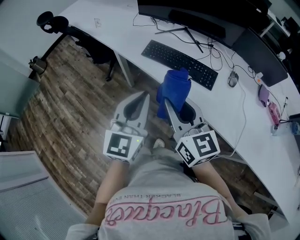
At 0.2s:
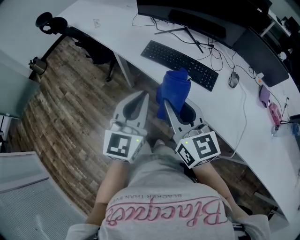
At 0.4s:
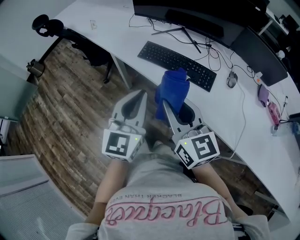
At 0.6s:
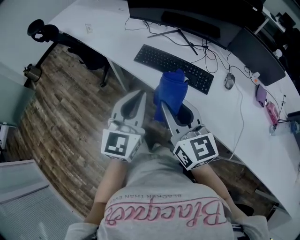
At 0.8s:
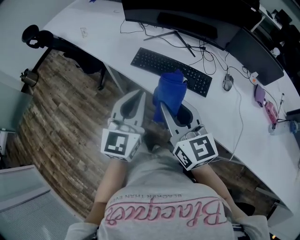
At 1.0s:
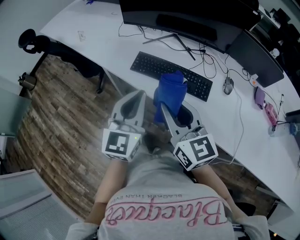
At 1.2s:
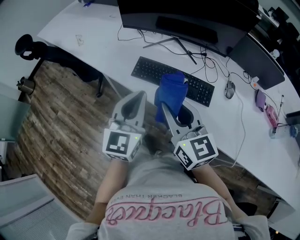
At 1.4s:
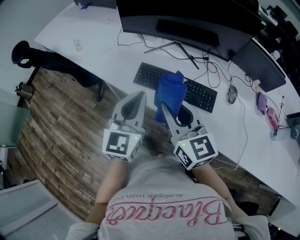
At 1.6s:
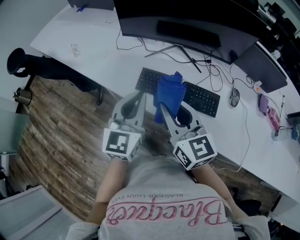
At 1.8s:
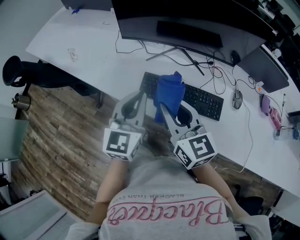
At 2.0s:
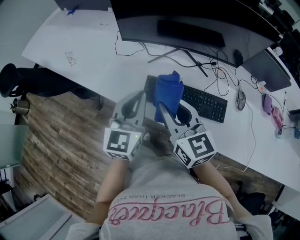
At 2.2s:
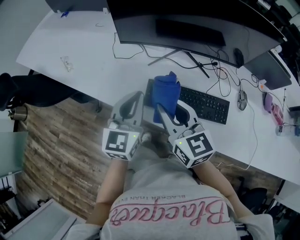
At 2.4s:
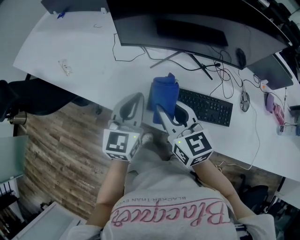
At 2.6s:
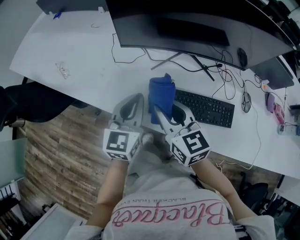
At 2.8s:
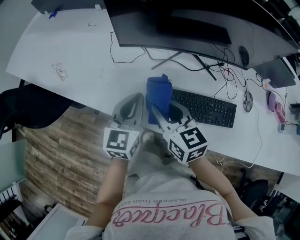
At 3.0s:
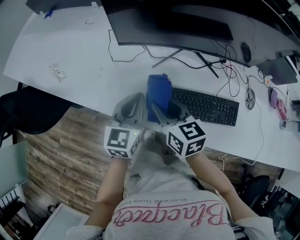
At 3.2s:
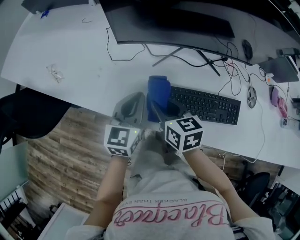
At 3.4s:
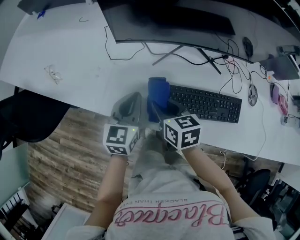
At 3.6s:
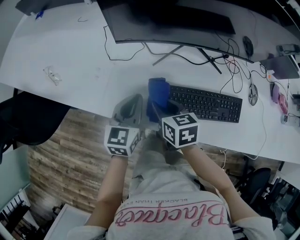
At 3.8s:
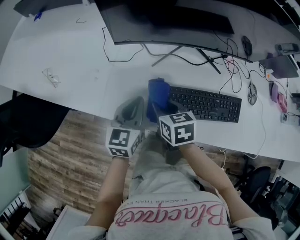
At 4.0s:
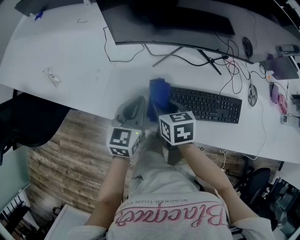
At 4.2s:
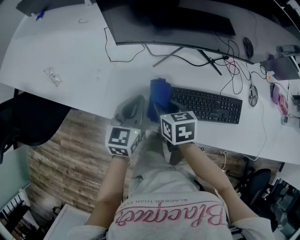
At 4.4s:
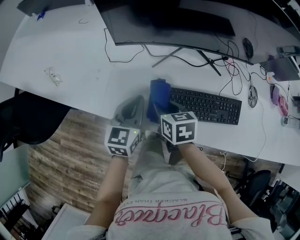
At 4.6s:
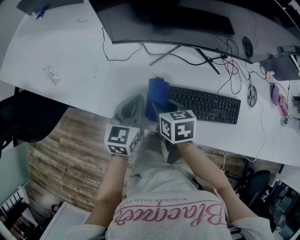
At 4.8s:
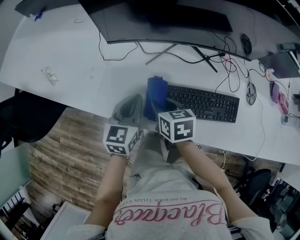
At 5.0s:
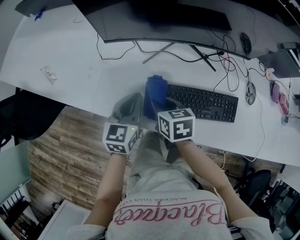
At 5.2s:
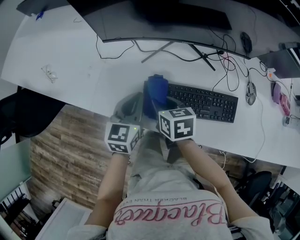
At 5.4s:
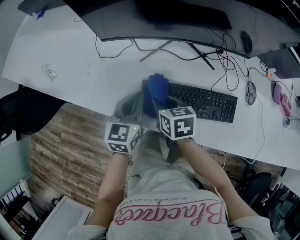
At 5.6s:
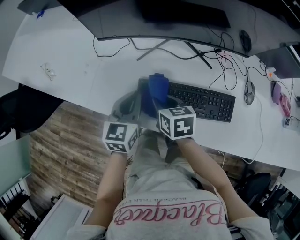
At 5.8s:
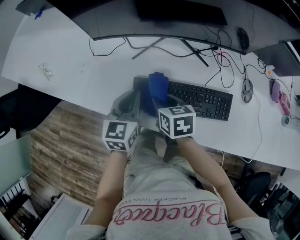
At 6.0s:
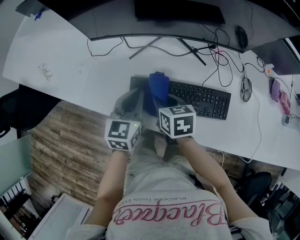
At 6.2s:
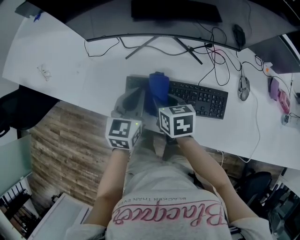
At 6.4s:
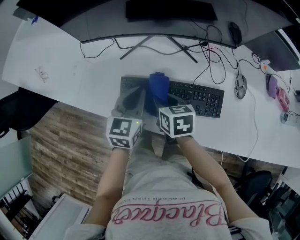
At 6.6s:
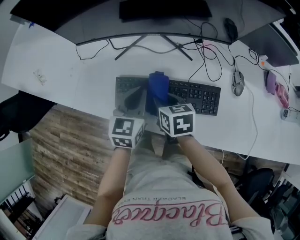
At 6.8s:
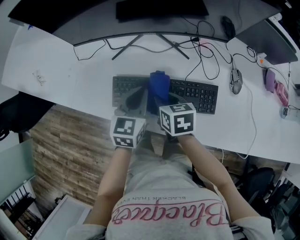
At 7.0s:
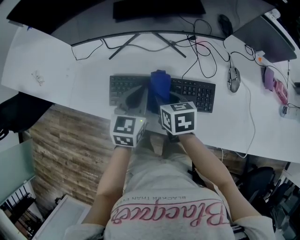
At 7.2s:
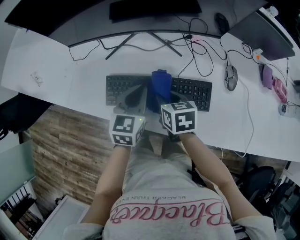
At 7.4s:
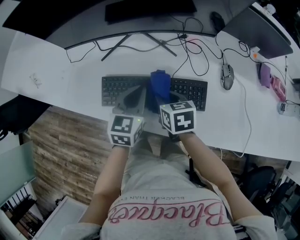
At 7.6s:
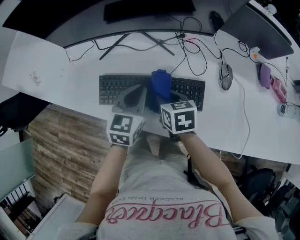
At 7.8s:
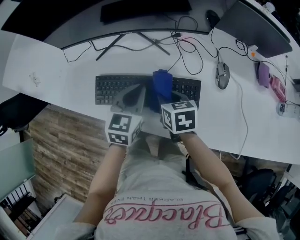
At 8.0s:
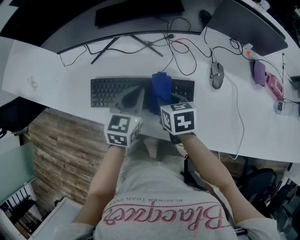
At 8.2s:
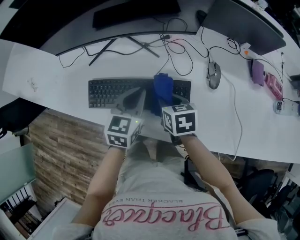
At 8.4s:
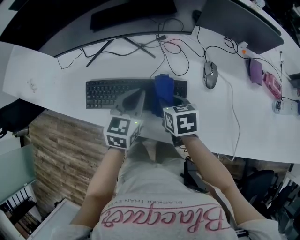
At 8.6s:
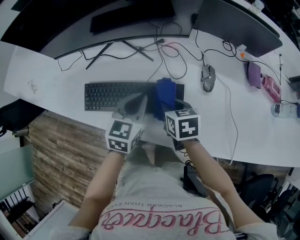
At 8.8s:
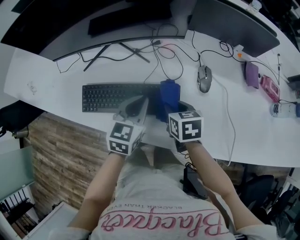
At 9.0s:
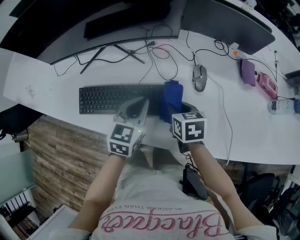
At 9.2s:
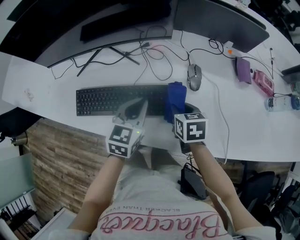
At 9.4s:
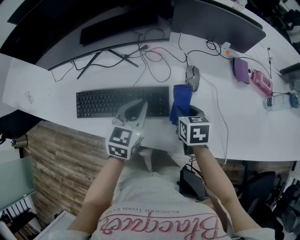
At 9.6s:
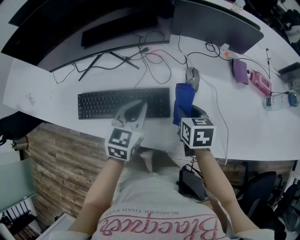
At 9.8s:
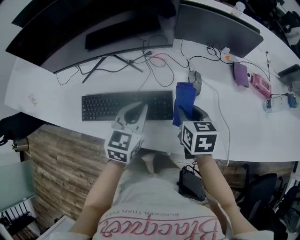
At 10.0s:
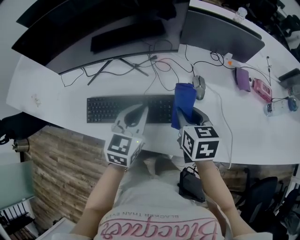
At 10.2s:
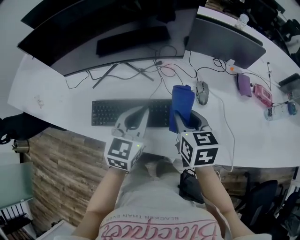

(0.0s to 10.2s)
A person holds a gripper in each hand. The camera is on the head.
0.0s - 1.4s: The two grippers go some 15 cm forward.
1.4s - 3.0s: The grippers both shift forward, downward and to the left by approximately 30 cm. The left gripper changes its angle by roughly 20 degrees. Meanwhile the right gripper changes its angle by some 30 degrees.
3.0s - 4.4s: The right gripper shifts about 10 cm downward, and swivels about 20 degrees.
4.4s - 5.8s: The two grippers go about 10 cm to the right.
5.8s - 7.2s: The grippers both shift to the right by about 15 cm.
7.2s - 8.8s: The two grippers go some 15 cm to the right.
8.8s - 10.2s: The left gripper travels upward by about 10 cm; the right gripper goes roughly 15 cm upward.

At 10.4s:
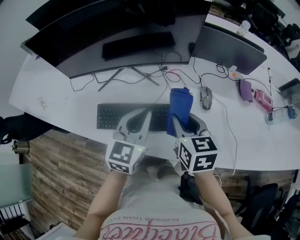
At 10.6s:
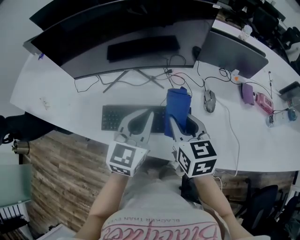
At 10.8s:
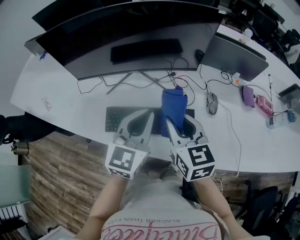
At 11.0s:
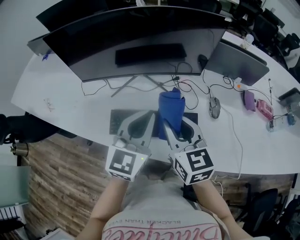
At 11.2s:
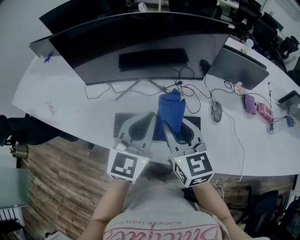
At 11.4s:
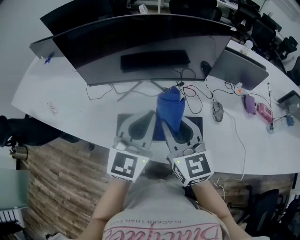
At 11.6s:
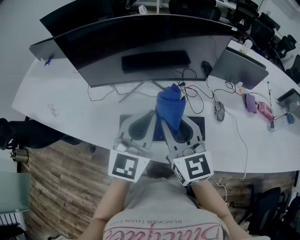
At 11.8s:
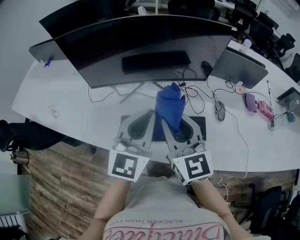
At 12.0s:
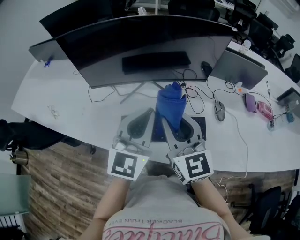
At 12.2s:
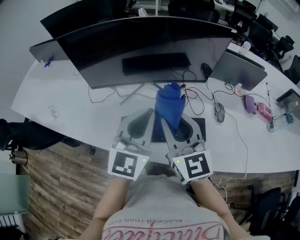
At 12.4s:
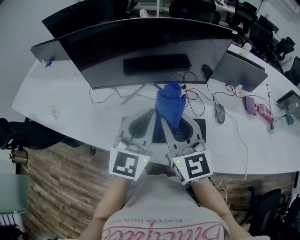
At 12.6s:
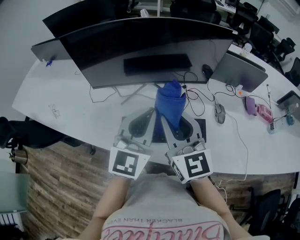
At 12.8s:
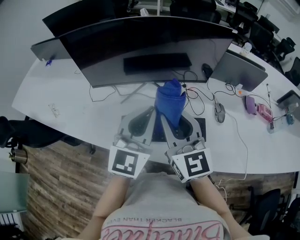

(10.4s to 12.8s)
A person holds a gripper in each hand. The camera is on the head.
10.4s - 11.6s: The grippers both shift to the left and upward by roughly 15 cm. The right gripper changes its angle by some 30 degrees.
11.6s - 12.8s: There are only small adjustments of the grippers.

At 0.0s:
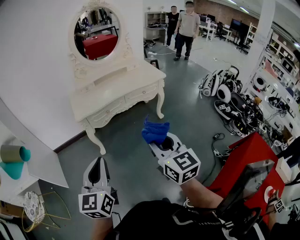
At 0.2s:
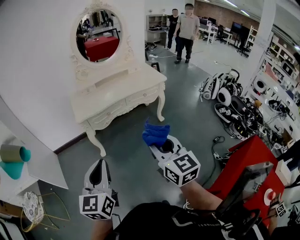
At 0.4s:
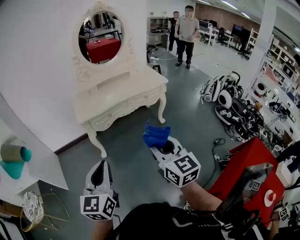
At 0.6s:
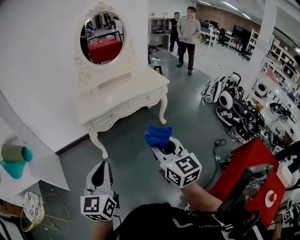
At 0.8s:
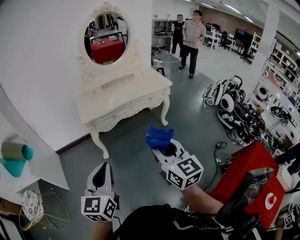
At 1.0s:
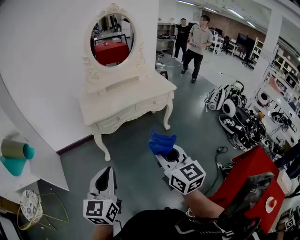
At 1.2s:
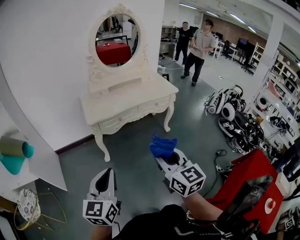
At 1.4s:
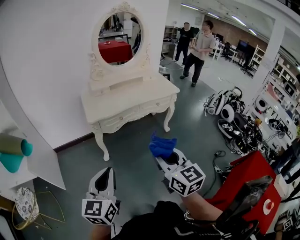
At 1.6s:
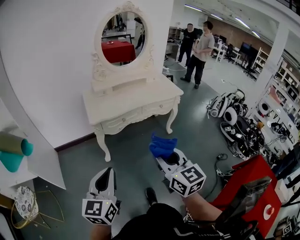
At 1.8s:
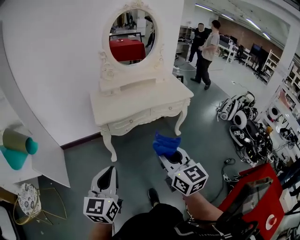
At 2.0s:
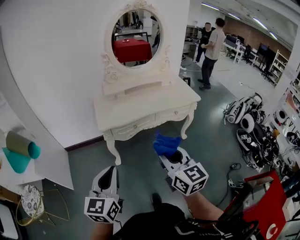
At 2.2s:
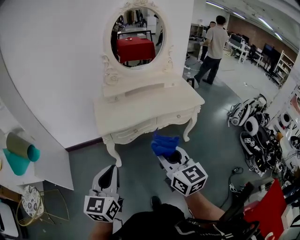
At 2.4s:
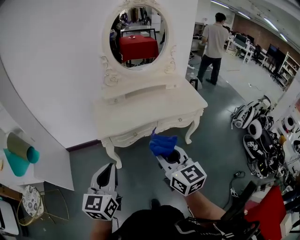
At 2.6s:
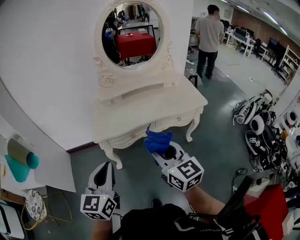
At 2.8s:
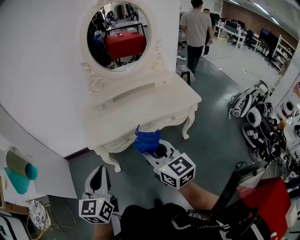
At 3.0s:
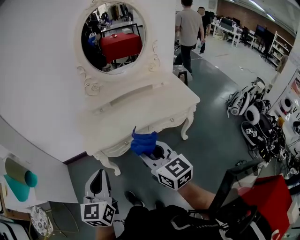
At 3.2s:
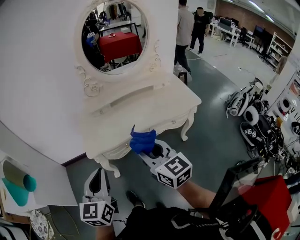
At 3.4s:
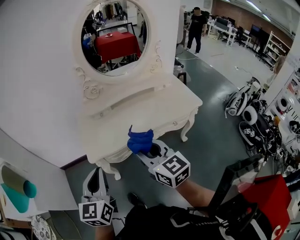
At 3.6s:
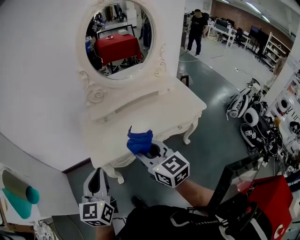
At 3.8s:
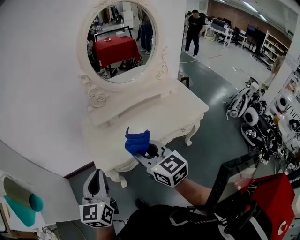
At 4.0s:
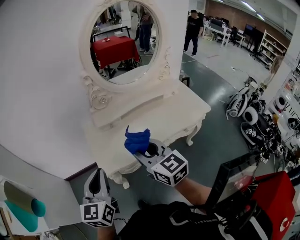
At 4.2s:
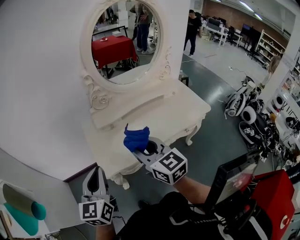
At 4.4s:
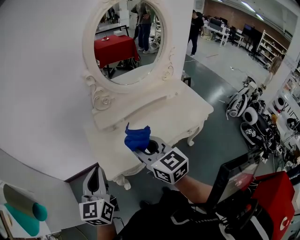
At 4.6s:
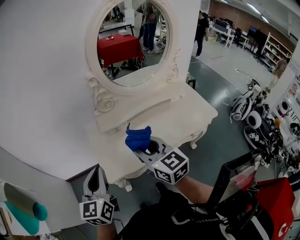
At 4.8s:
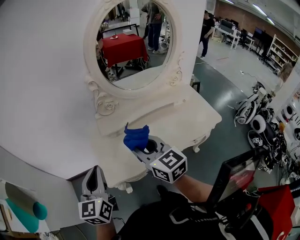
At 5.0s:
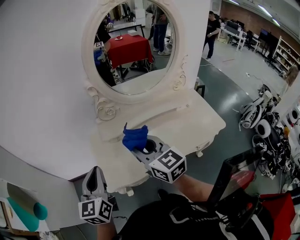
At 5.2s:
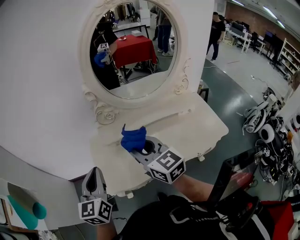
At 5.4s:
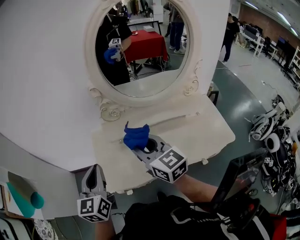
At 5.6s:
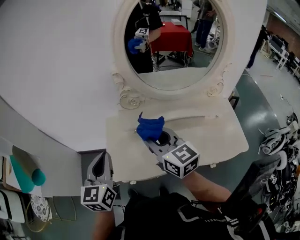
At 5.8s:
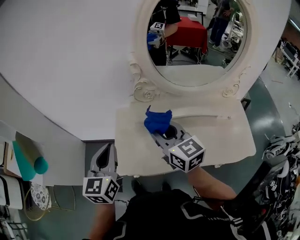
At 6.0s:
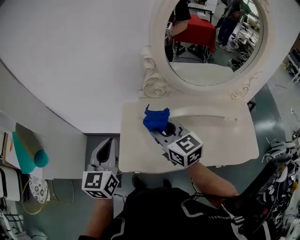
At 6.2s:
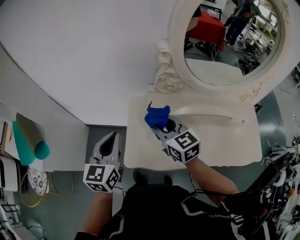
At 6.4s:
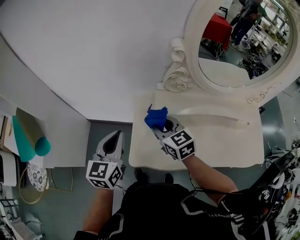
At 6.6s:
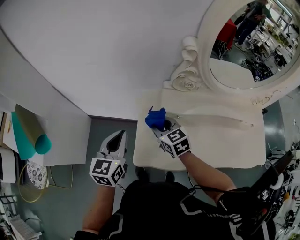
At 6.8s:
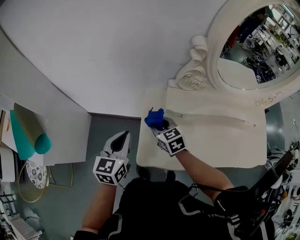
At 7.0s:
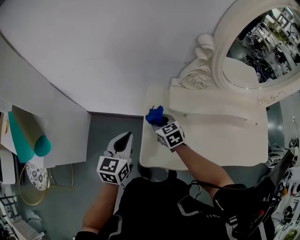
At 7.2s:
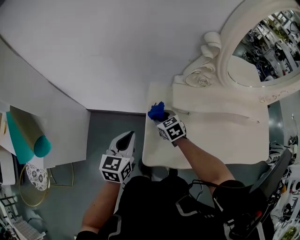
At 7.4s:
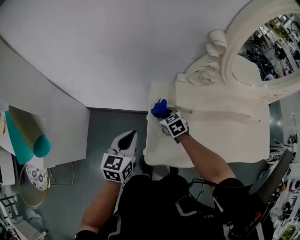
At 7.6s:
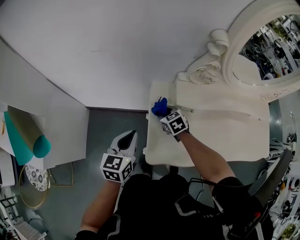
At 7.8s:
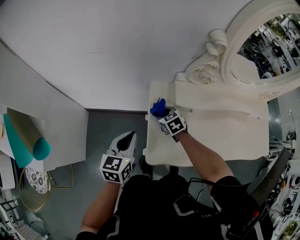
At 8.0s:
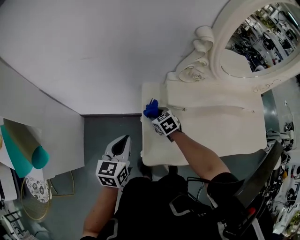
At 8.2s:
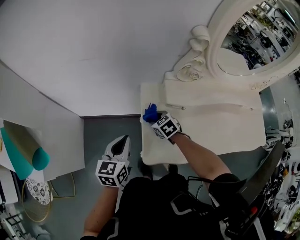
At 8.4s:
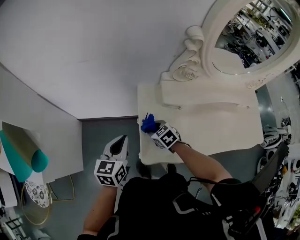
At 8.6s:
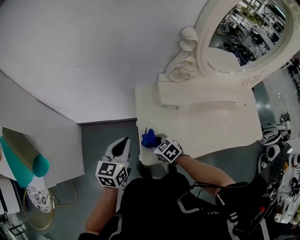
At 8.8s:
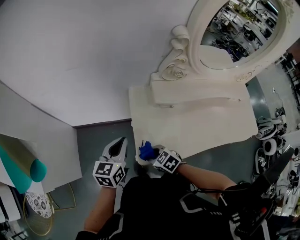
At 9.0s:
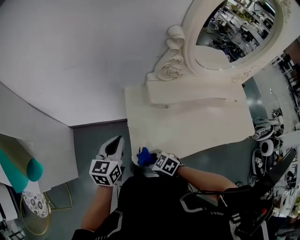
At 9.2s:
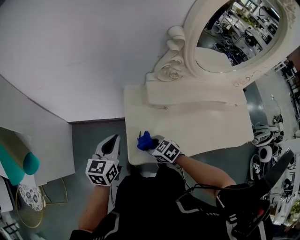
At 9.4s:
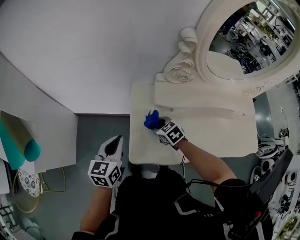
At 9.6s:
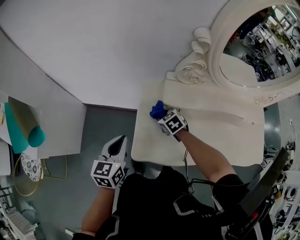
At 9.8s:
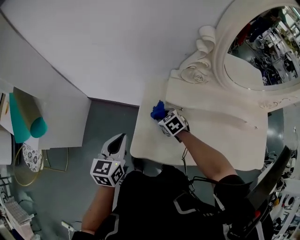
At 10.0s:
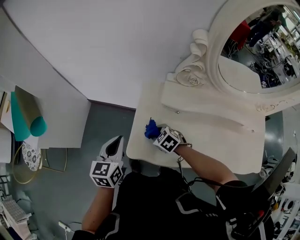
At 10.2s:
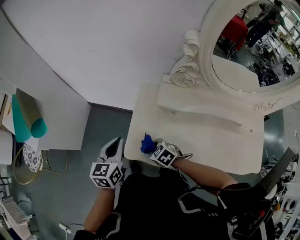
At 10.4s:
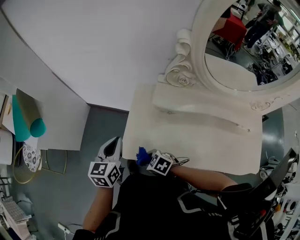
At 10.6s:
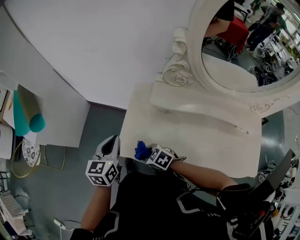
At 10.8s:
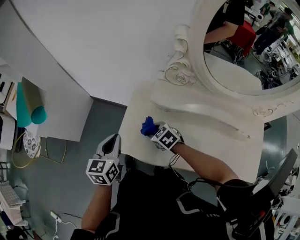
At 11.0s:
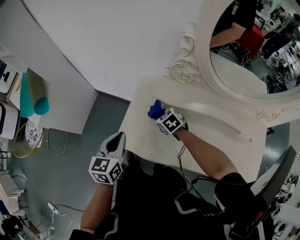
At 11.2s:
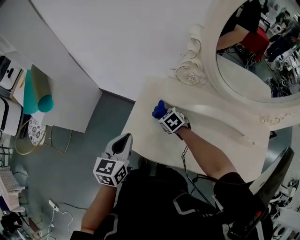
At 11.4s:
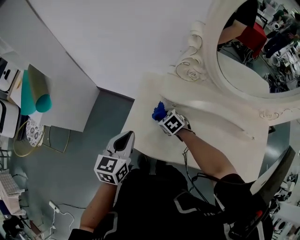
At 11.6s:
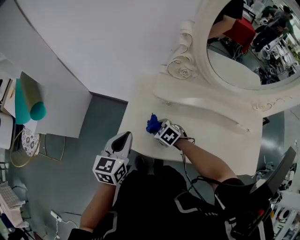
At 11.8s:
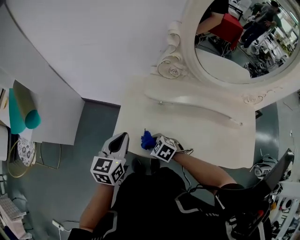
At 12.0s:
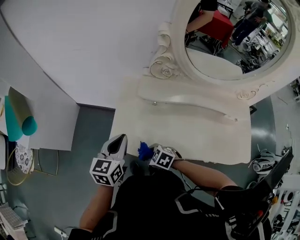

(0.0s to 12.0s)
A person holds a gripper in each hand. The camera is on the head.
0.0s - 1.6s: Both grippers travel together to the left, roughly 10 cm.
1.6s - 3.0s: The two grippers go about 30 cm forward.
3.0s - 4.4s: Both grippers travel together forward and to the left, some 25 cm.
4.4s - 6.0s: Both grippers move forward, approximately 15 cm. The left gripper swivels roughly 20 degrees; the right gripper turns by about 30 degrees.
6.0s - 7.6s: The left gripper heads downward, to the left and forward, covering roughly 20 cm. The right gripper goes approximately 35 cm downward, forward and to the left, and tips its fingers downward by some 40 degrees.
7.6s - 9.0s: The right gripper is displaced backward by roughly 25 cm, and turns by some 20 degrees.
9.0s - 10.4s: The right gripper swivels approximately 20 degrees; the left gripper changes place by about 5 cm, and changes its angle by some 20 degrees.
10.4s - 12.0s: The left gripper goes approximately 10 cm backward and to the right. The right gripper travels to the right by about 5 cm, and reaches approximately 15 cm forward, then returns.
